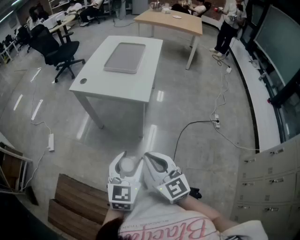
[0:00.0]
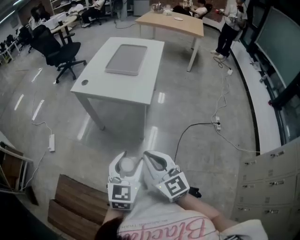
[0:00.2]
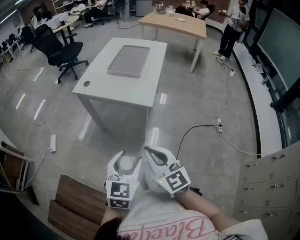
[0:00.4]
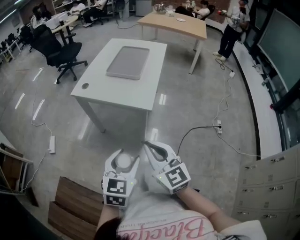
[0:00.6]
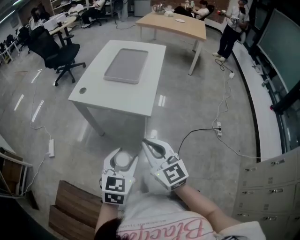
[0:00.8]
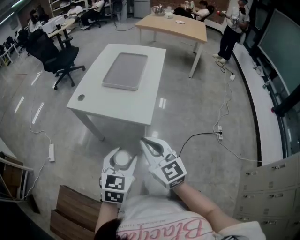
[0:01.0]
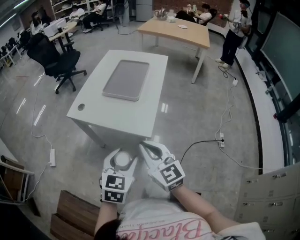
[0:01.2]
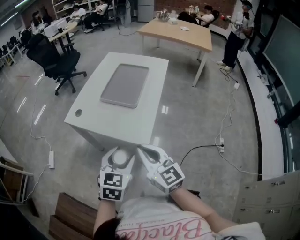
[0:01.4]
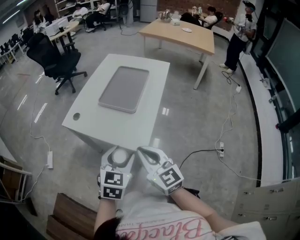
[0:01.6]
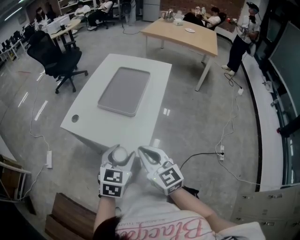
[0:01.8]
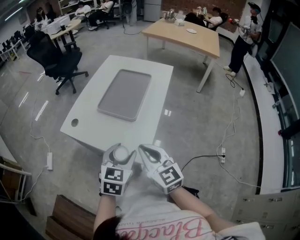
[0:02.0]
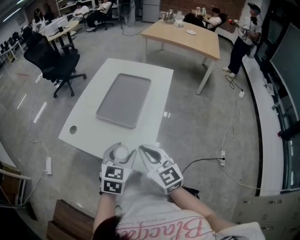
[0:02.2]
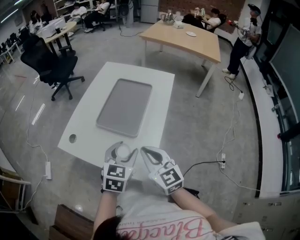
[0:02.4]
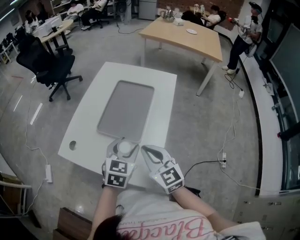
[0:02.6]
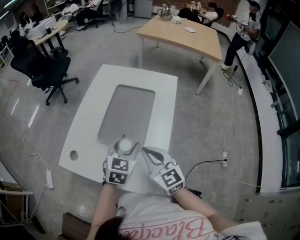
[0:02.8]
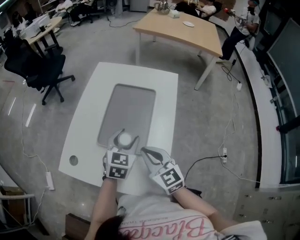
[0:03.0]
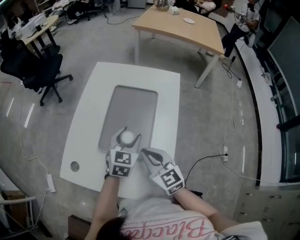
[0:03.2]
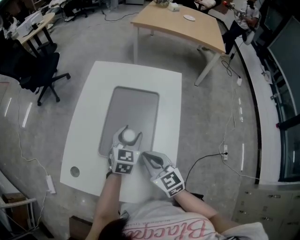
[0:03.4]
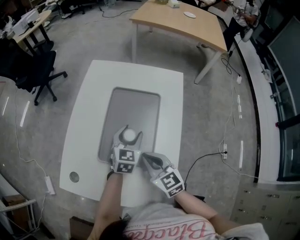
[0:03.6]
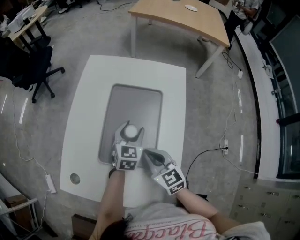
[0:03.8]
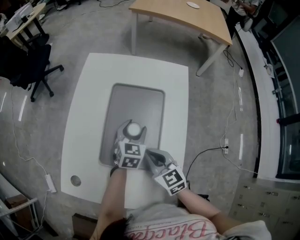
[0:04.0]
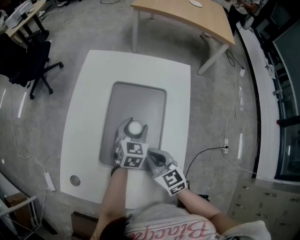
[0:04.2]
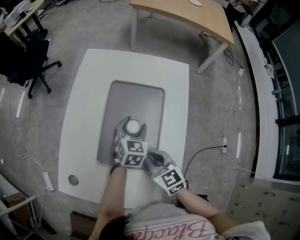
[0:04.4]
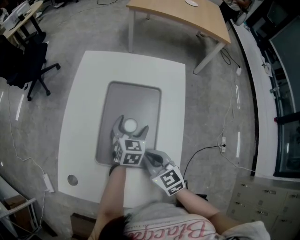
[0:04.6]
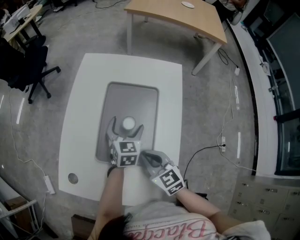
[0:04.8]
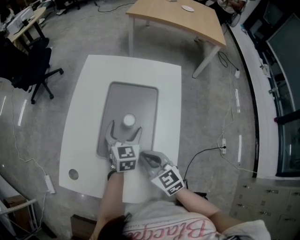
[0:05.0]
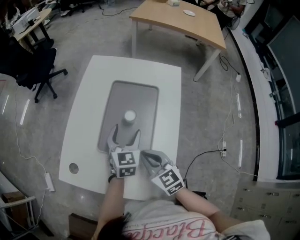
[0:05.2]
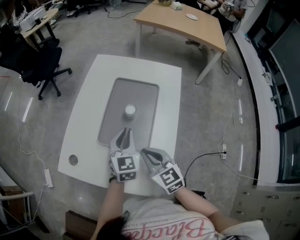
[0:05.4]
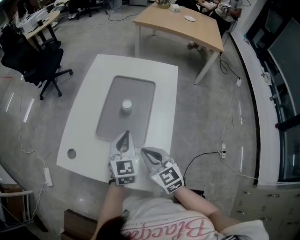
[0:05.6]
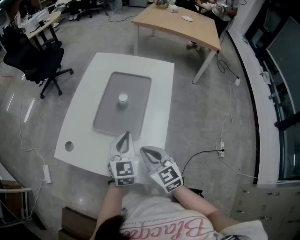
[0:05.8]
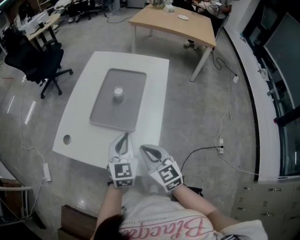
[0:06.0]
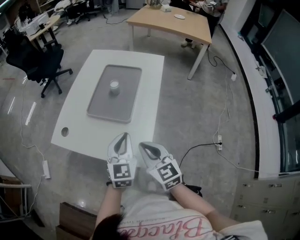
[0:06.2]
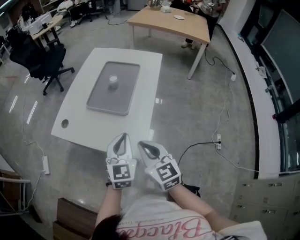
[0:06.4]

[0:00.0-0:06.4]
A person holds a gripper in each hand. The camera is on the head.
0:00.0 to 0:01.6: The two grippers go some 25 cm forward.
0:01.6 to 0:03.2: Both grippers move forward, about 25 cm.
0:03.2 to 0:04.8: The left gripper is displaced forward and downward by roughly 10 cm, and opens its fingers; the right gripper travels downward by about 5 cm.
0:04.8 to 0:06.4: The left gripper is displaced backward by roughly 30 cm, and closes; the right gripper heads backward and upward, covering approximately 20 cm.

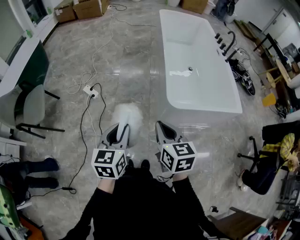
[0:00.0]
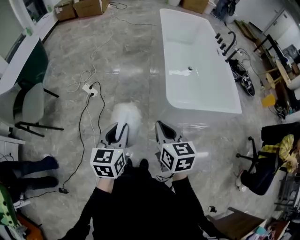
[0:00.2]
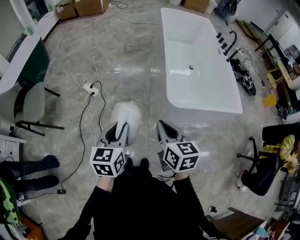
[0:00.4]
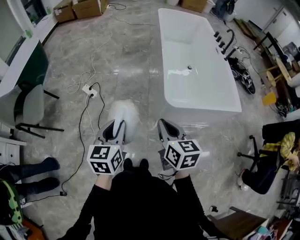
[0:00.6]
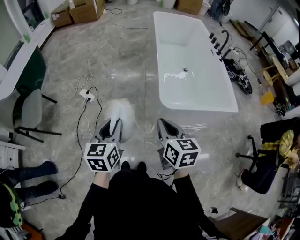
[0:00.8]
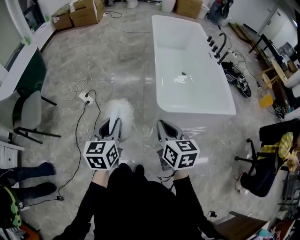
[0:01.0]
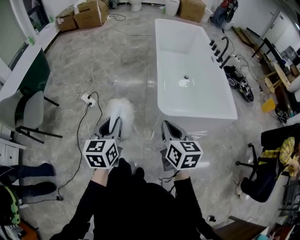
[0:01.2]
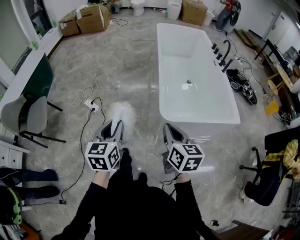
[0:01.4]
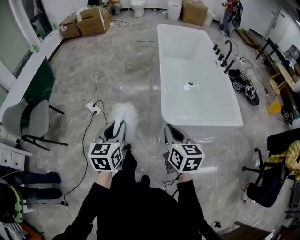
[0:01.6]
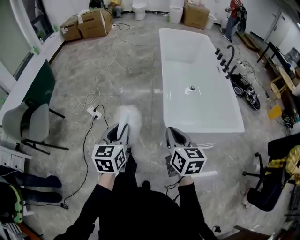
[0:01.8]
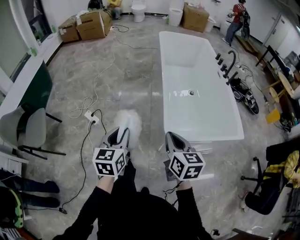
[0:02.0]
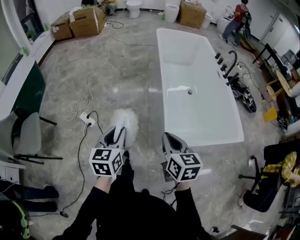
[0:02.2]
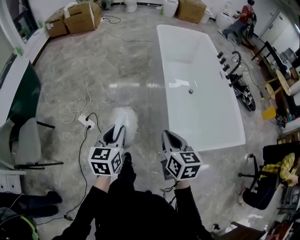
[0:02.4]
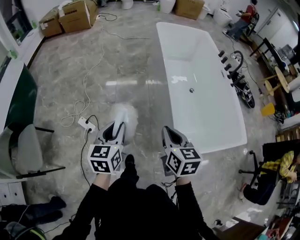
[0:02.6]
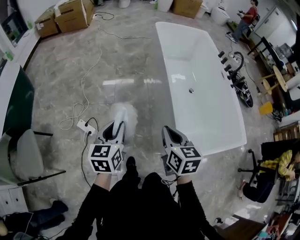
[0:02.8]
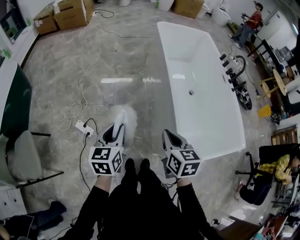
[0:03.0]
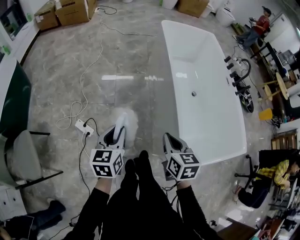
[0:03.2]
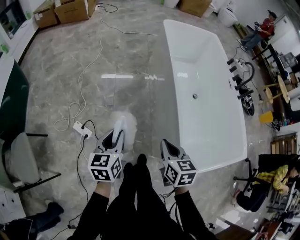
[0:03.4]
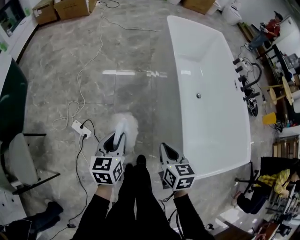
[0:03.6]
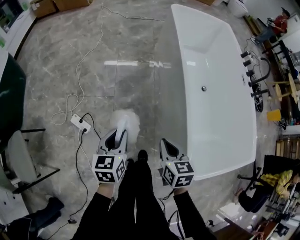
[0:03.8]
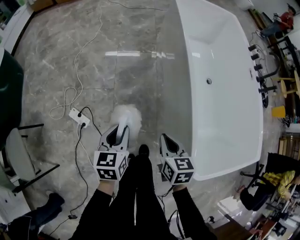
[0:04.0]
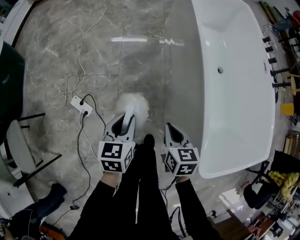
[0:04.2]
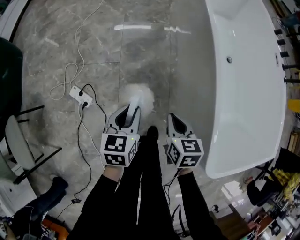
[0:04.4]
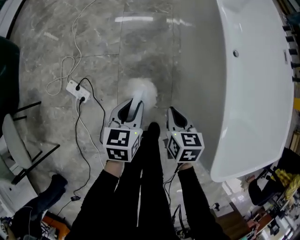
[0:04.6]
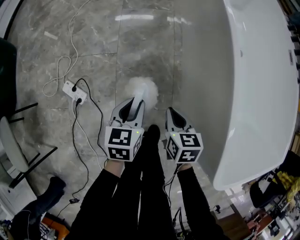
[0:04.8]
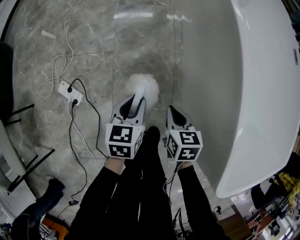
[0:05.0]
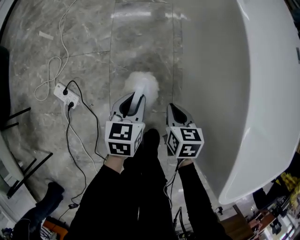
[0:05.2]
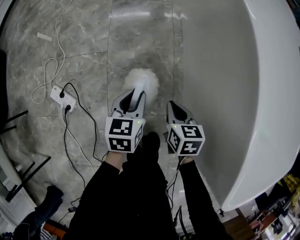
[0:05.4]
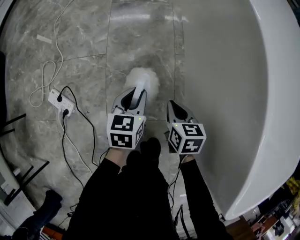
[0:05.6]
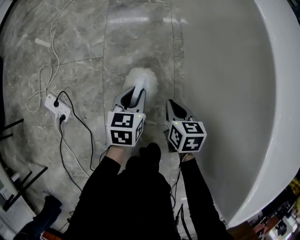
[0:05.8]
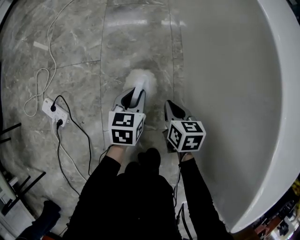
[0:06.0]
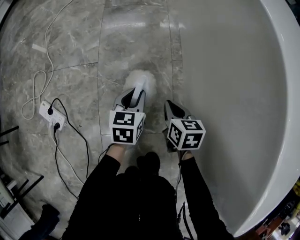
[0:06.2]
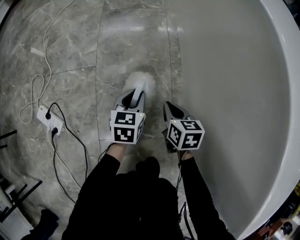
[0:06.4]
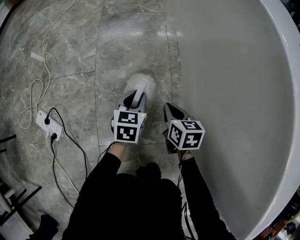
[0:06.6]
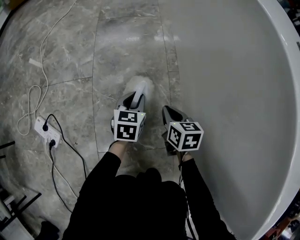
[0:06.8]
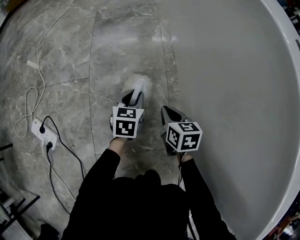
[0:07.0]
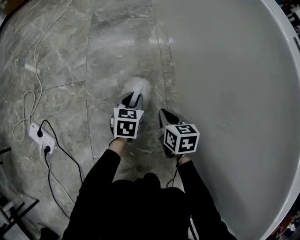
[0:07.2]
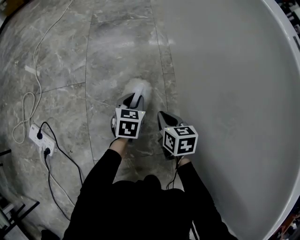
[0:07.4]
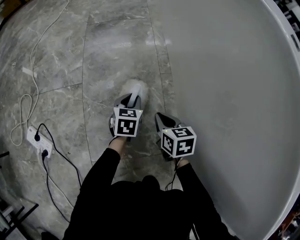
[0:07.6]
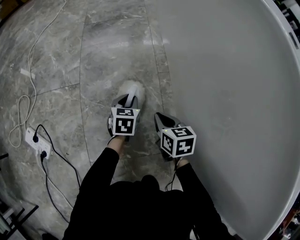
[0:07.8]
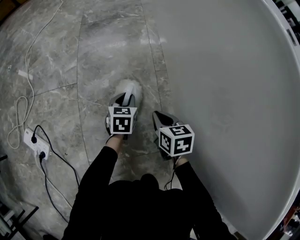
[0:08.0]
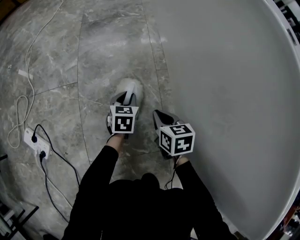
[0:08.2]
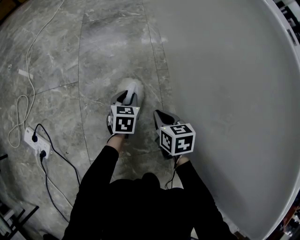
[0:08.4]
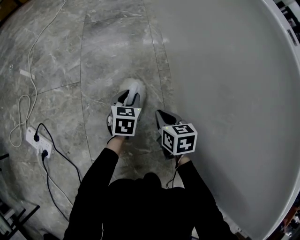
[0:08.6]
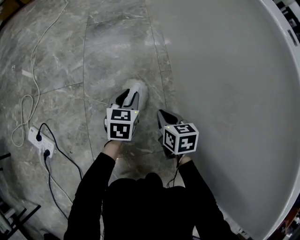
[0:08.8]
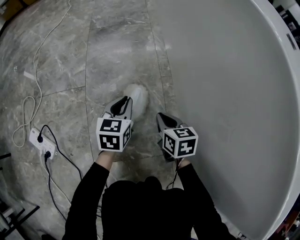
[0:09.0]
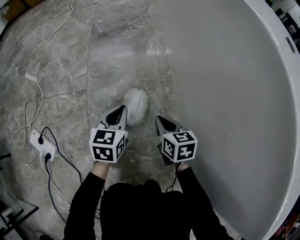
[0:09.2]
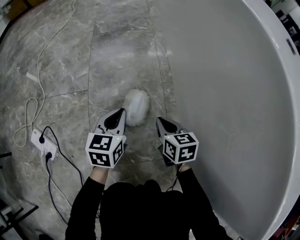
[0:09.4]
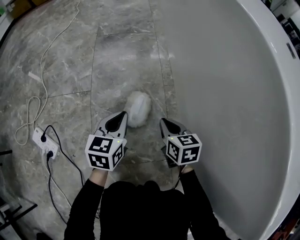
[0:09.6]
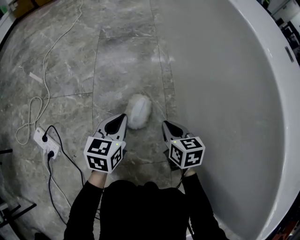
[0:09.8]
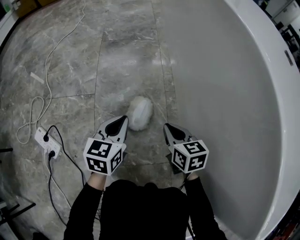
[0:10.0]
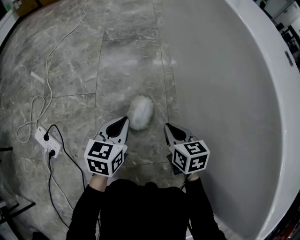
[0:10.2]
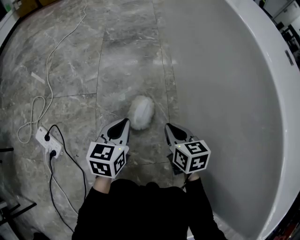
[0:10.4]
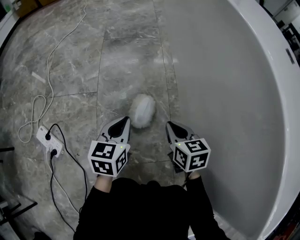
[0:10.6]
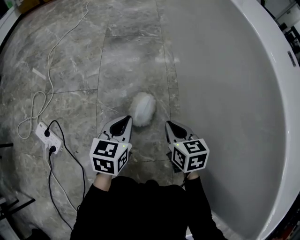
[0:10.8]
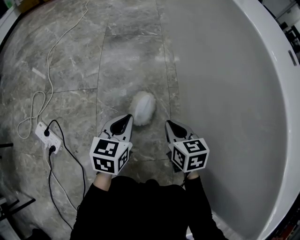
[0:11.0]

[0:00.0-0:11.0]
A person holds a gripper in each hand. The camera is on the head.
0:00.0 to 0:01.6: The right gripper is displaced to the right and forward by some 10 cm; the left gripper heads forward, covering about 10 cm.
0:01.6 to 0:03.2: The grippers both shift forward and to the left by roughly 35 cm.
0:03.2 to 0:04.8: Both grippers travel together downward, some 35 cm.
0:04.8 to 0:06.2: The two grippers go some 25 cm downward and forward.
0:06.2 to 0:07.8: The left gripper shifts roughly 15 cm downward and forward. The right gripper goes roughly 10 cm downward.
0:07.8 to 0:09.4: The left gripper moves upward and to the left, approximately 15 cm, and closes up.
0:09.4 to 0:11.0: The right gripper heads upward, covering roughly 5 cm.

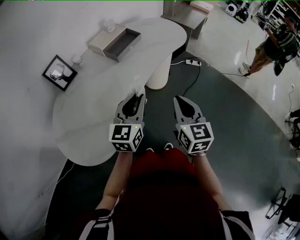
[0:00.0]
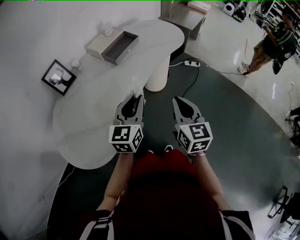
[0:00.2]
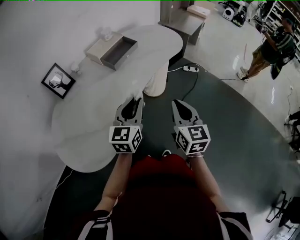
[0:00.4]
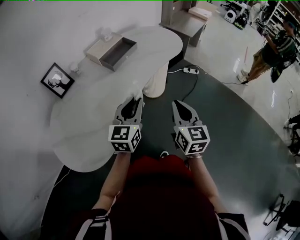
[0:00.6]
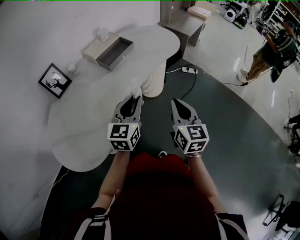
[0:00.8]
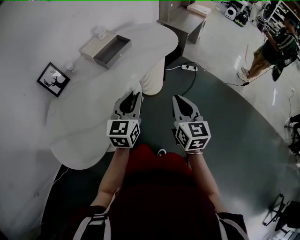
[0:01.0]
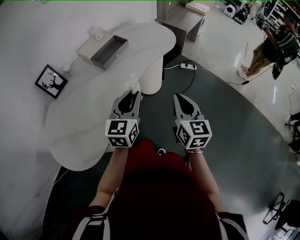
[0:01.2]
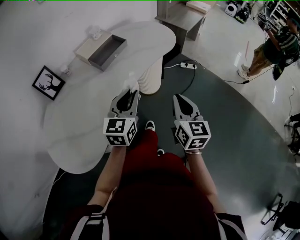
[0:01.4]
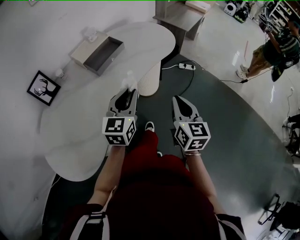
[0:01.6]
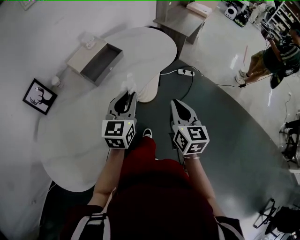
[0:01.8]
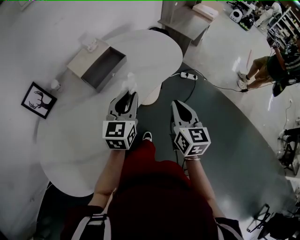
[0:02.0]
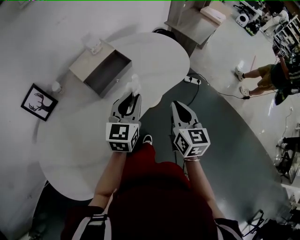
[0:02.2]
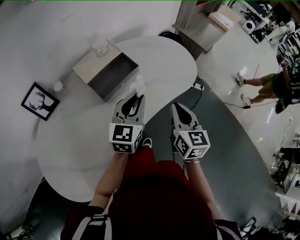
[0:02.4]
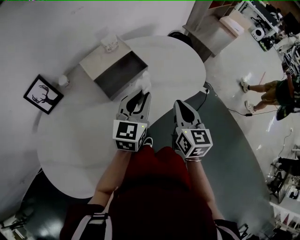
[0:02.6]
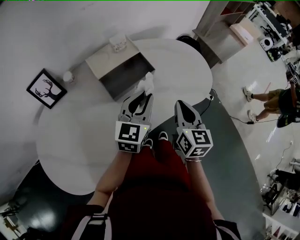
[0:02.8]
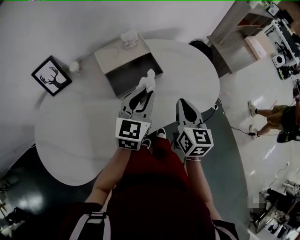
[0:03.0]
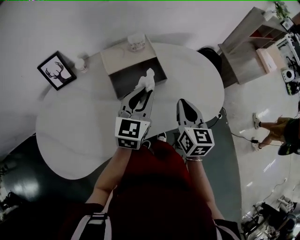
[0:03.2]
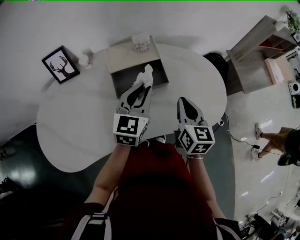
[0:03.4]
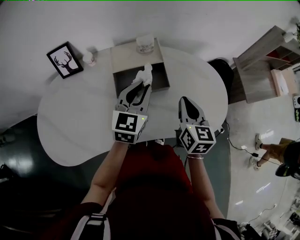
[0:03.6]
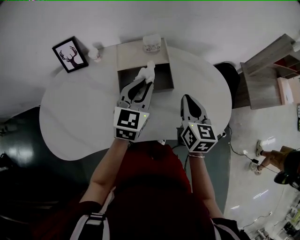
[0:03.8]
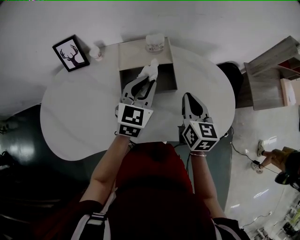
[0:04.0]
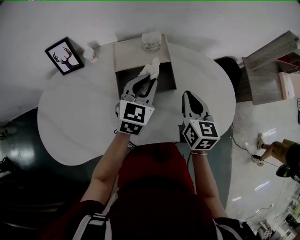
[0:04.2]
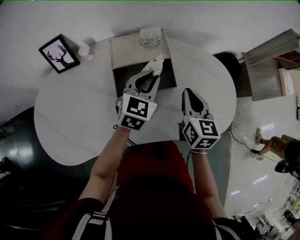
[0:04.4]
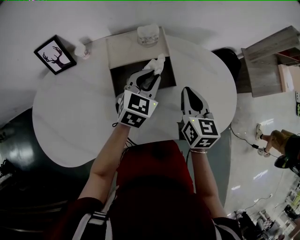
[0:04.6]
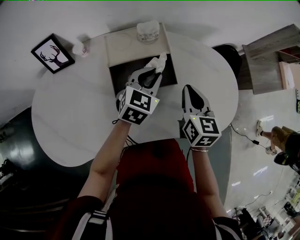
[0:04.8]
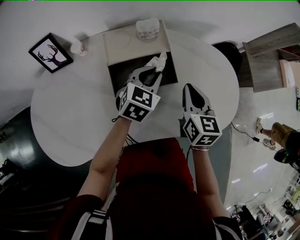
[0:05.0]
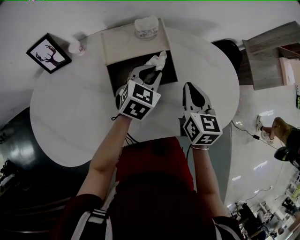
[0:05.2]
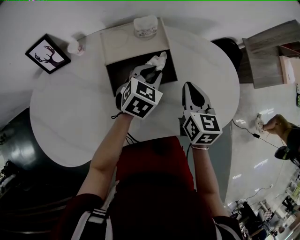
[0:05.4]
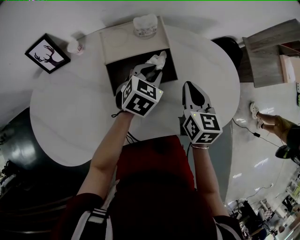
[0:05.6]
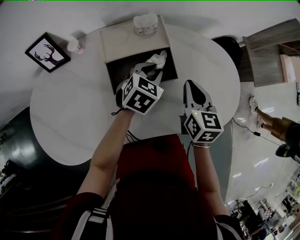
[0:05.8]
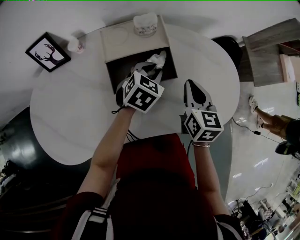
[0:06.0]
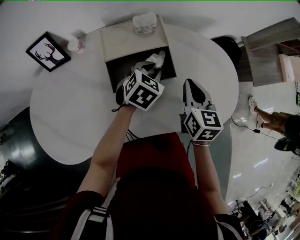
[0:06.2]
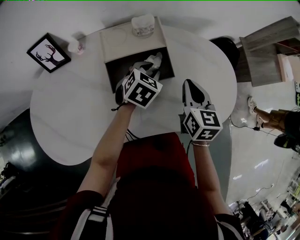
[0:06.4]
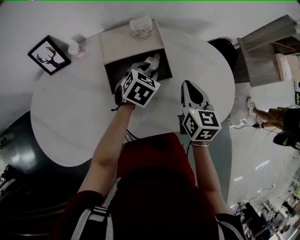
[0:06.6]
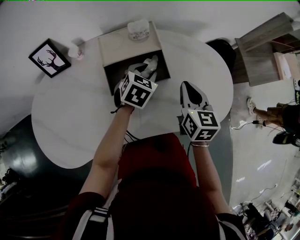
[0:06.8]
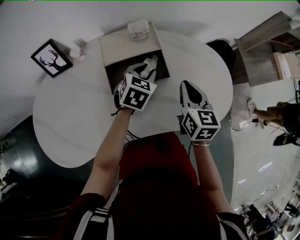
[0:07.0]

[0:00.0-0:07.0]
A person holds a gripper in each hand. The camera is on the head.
0:00.0 to 0:01.4: The left gripper shifts some 10 cm forward and to the right; the right gripper is displaced to the right and forward by approximately 10 cm.
0:01.4 to 0:02.8: The two grippers go approximately 25 cm forward.
0:02.8 to 0:04.2: The right gripper ends up approximately 15 cm from where it was, and rotates some 30 degrees. Meanwhile the left gripper ends up about 15 cm from where it was, and changes its angle by some 30 degrees.
0:04.2 to 0:05.6: The left gripper travels downward by some 10 cm, and turns by some 20 degrees.
0:05.6 to 0:07.0: The grippers move only a little.
